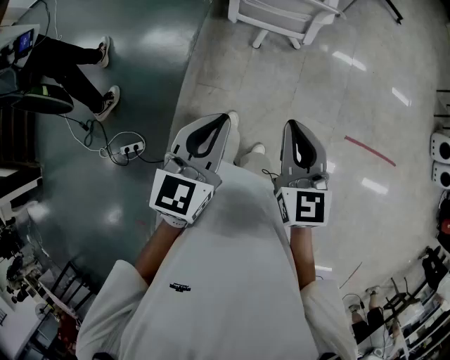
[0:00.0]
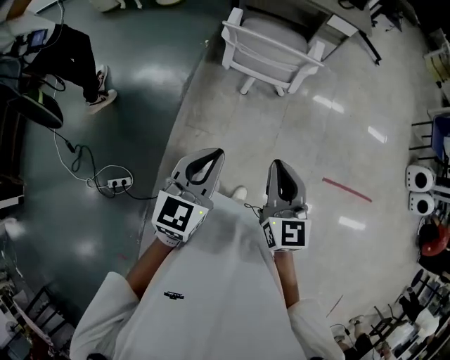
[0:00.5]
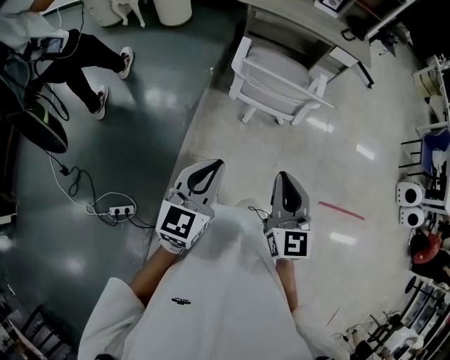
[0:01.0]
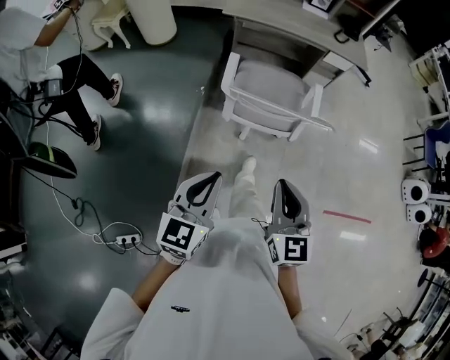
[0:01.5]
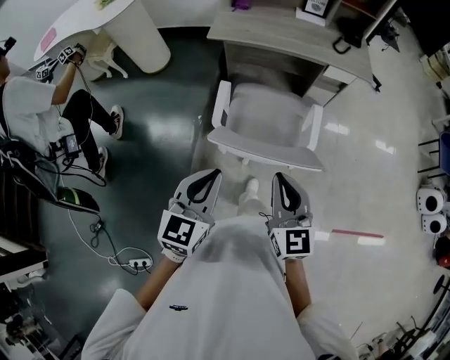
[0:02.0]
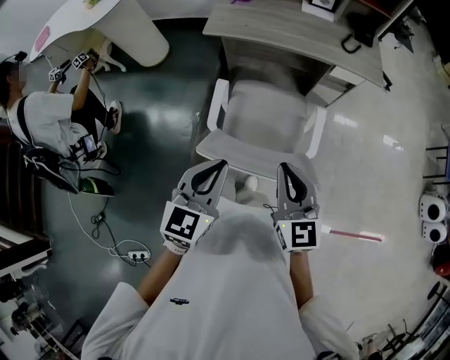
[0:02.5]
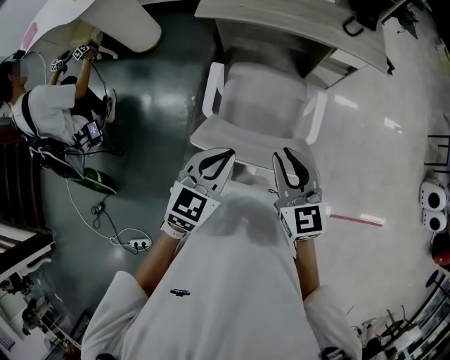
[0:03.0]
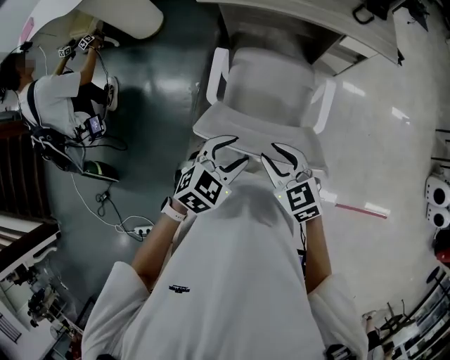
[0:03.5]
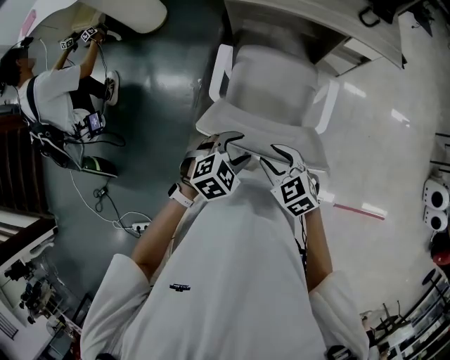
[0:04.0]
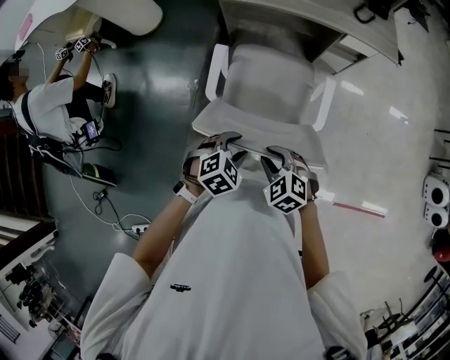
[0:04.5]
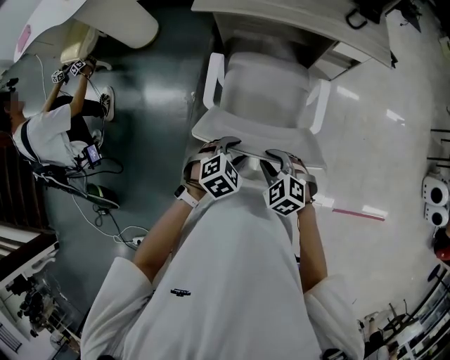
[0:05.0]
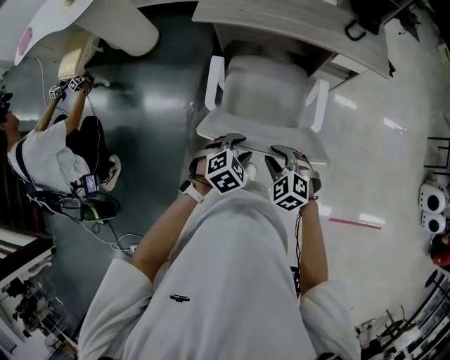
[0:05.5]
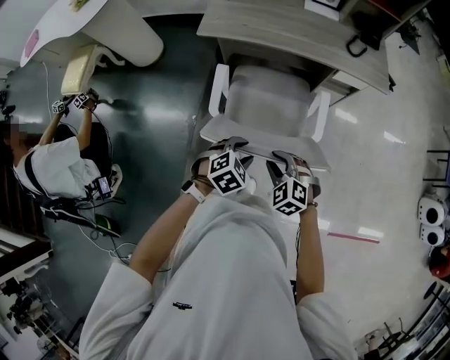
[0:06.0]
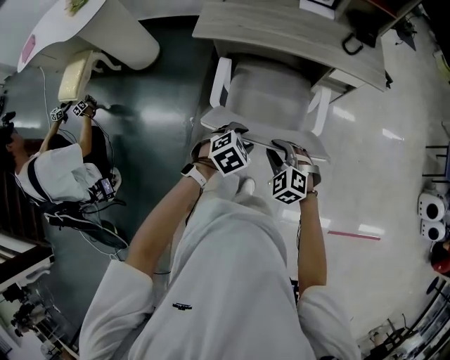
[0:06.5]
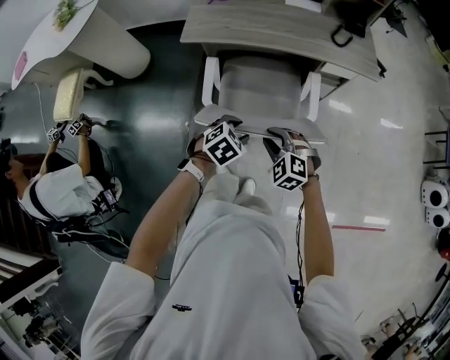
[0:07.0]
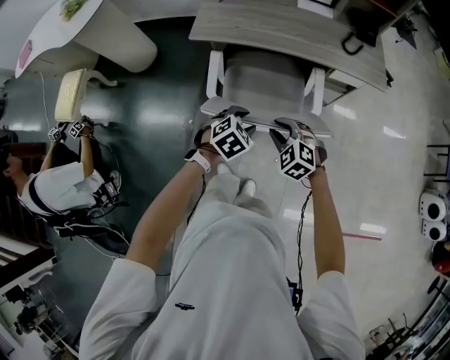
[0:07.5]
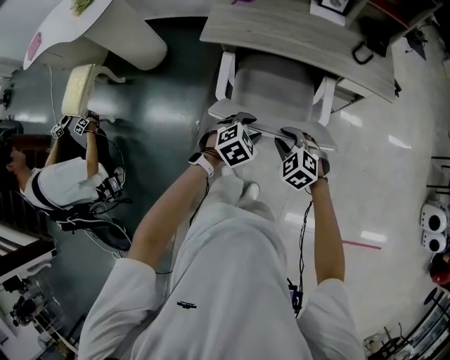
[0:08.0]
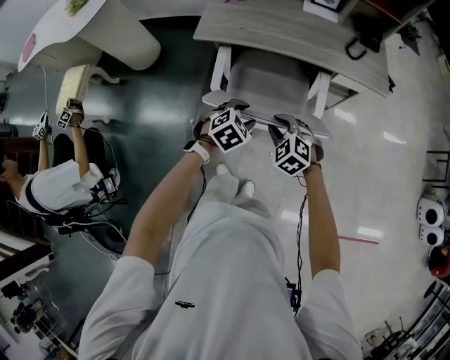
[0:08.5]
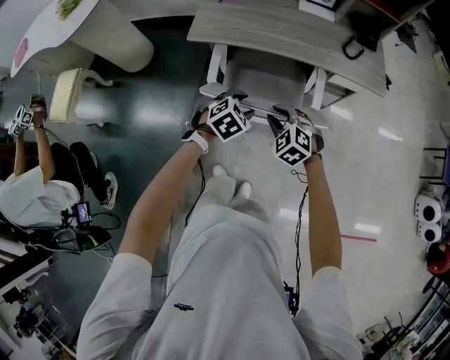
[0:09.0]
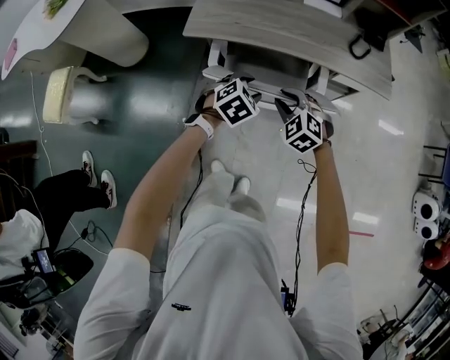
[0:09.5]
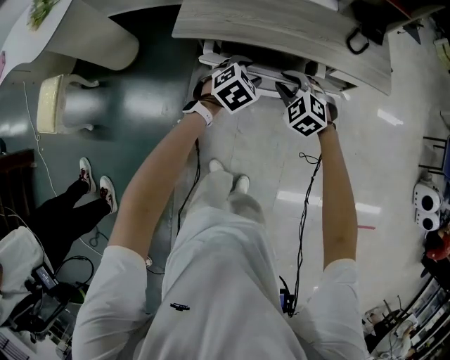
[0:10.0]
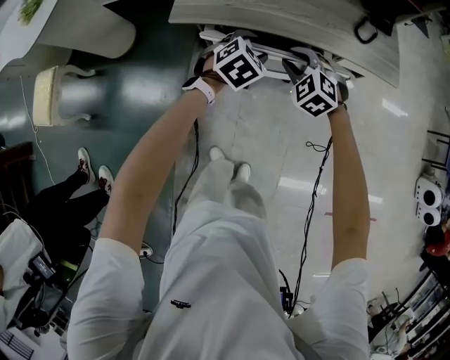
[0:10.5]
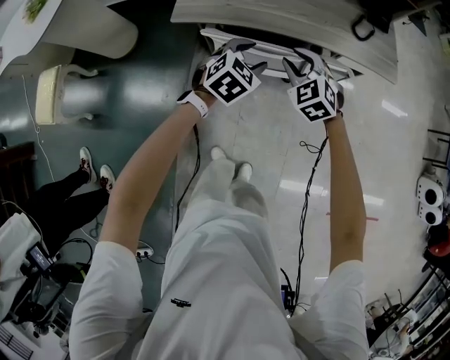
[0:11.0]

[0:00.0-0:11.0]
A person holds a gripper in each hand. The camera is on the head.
0:00.0 to 0:02.0: Both grippers move forward, approximately 40 cm.
0:02.0 to 0:03.5: The right gripper is displaced downward and forward by about 15 cm, turns by roughly 40 degrees, and opens its fingers. Meanwhile the left gripper is displaced downward, forward and to the right by approximately 20 cm, changes its angle by about 40 degrees, and opens its fingers.
0:03.5 to 0:05.5: The grippers both shift downward and forward by roughly 10 cm. The right gripper rotates about 30 degrees.
0:05.5 to 0:07.5: Both grippers move forward, some 15 cm.
0:07.5 to 0:09.0: The two grippers go approximately 5 cm forward.
0:09.0 to 0:11.0: The grippers both shift forward by approximately 15 cm.

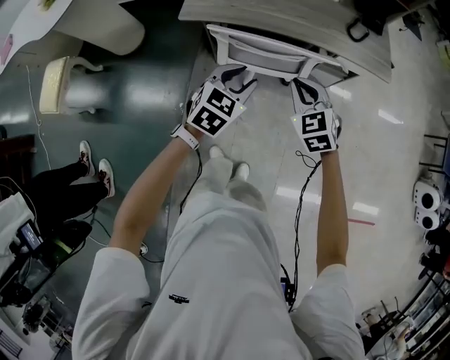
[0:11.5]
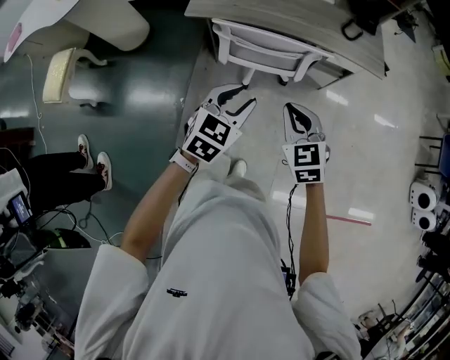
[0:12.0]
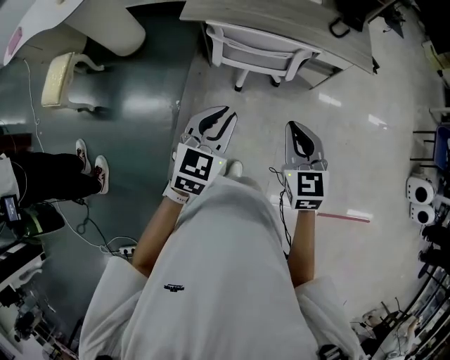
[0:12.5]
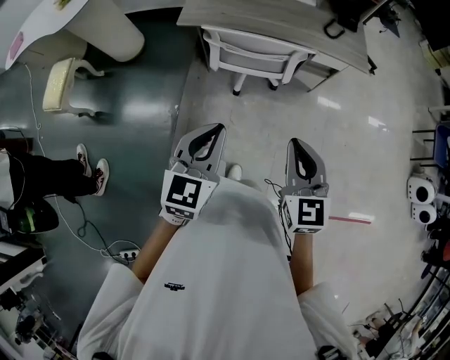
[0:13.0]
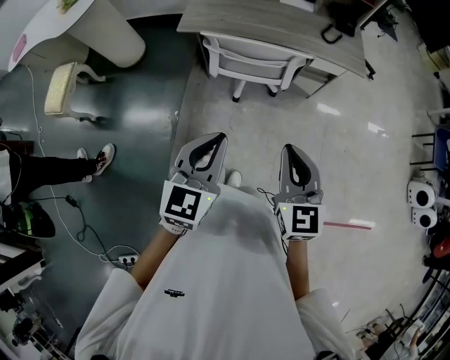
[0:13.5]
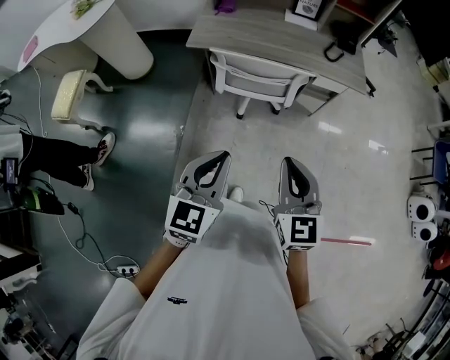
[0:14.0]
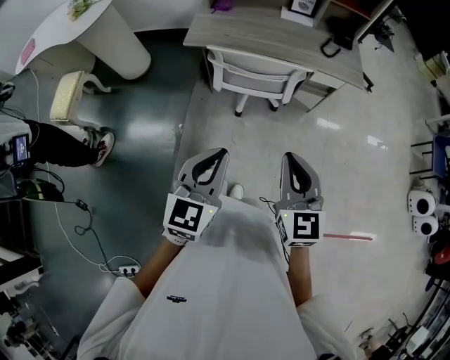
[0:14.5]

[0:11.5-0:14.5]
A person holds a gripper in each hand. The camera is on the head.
0:11.5 to 0:13.0: The two grippers go about 30 cm backward and upward. The left gripper changes its angle by some 20 degrees, and closes up. The right gripper turns by about 30 degrees.
0:13.0 to 0:14.5: The grippers stay close to where they were, moving slightly.

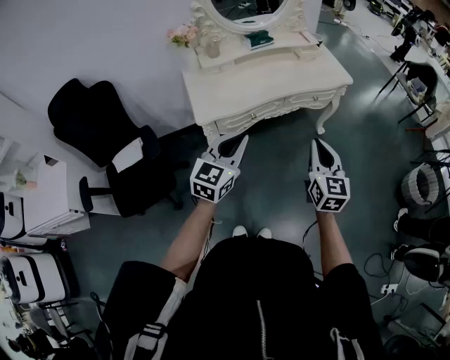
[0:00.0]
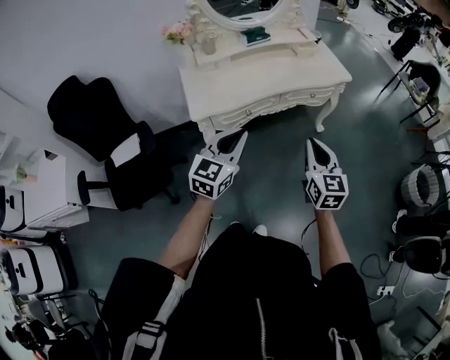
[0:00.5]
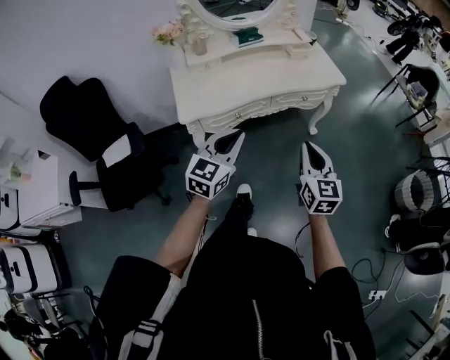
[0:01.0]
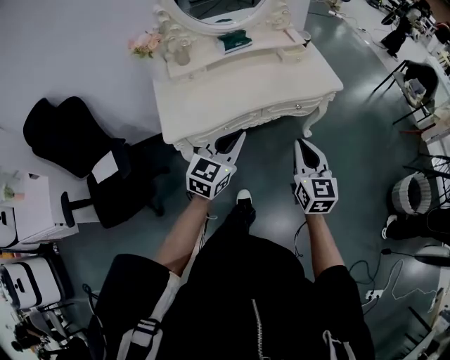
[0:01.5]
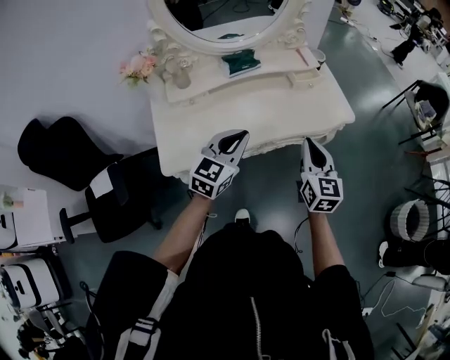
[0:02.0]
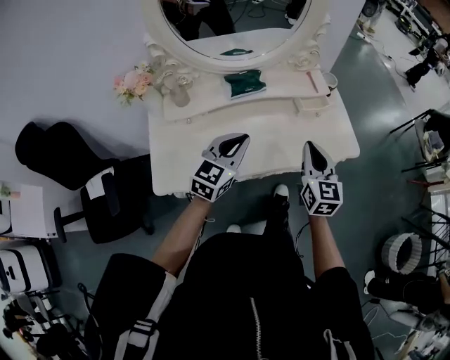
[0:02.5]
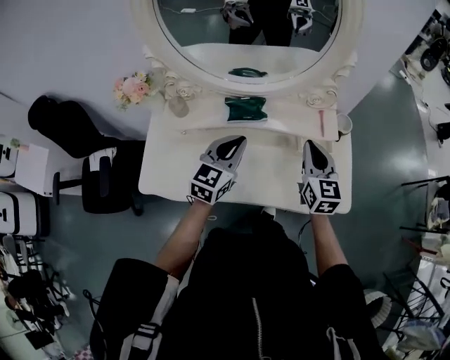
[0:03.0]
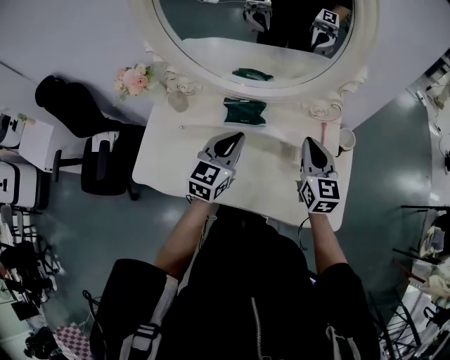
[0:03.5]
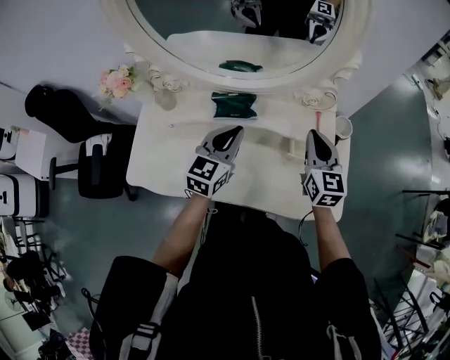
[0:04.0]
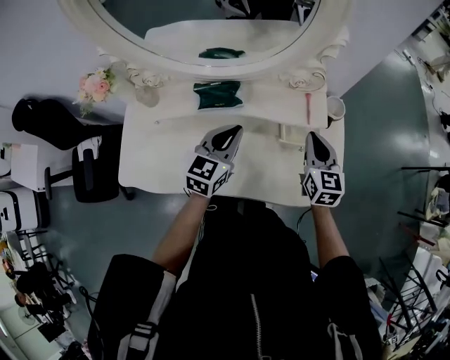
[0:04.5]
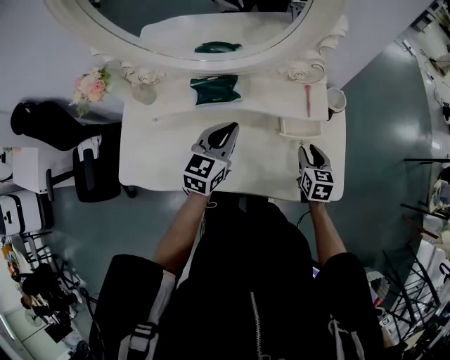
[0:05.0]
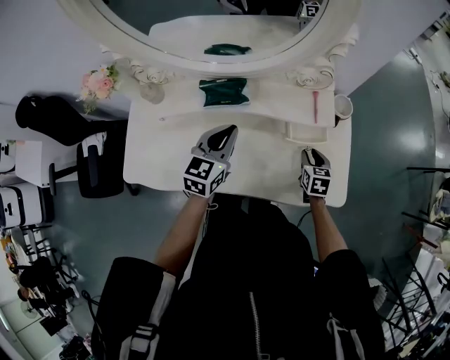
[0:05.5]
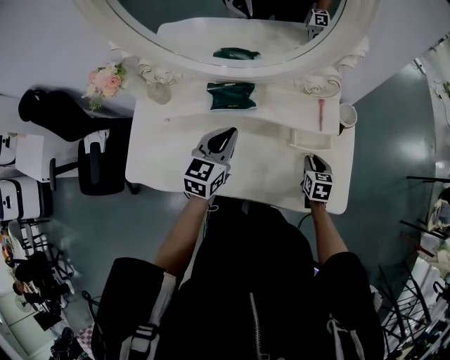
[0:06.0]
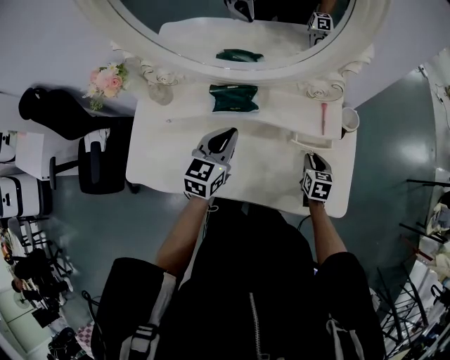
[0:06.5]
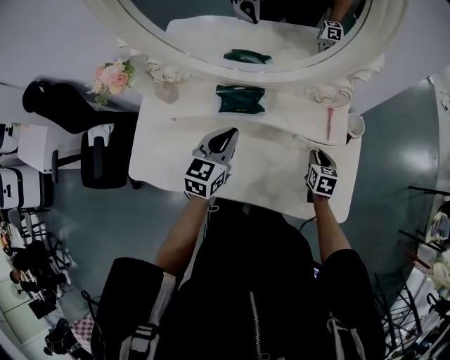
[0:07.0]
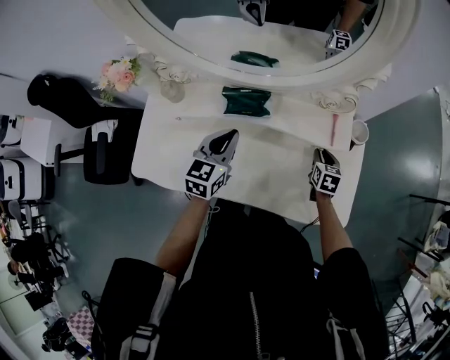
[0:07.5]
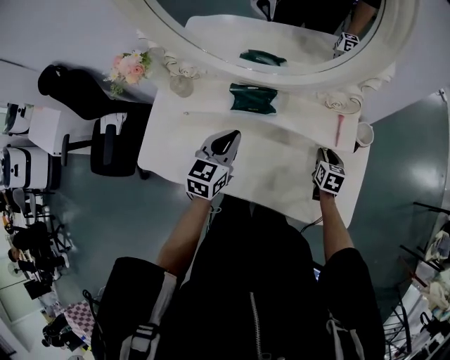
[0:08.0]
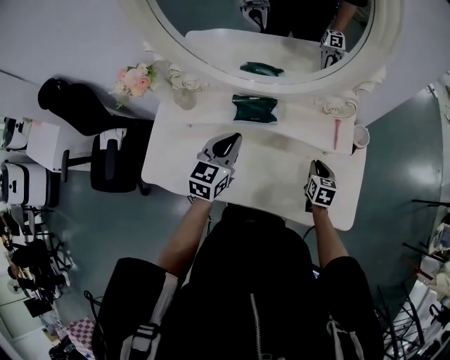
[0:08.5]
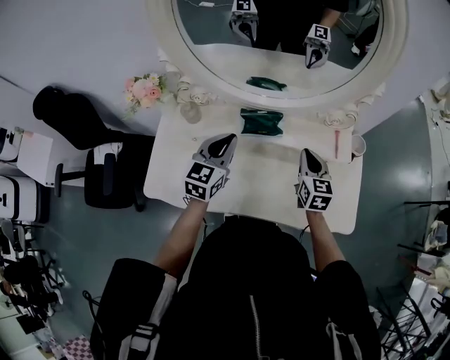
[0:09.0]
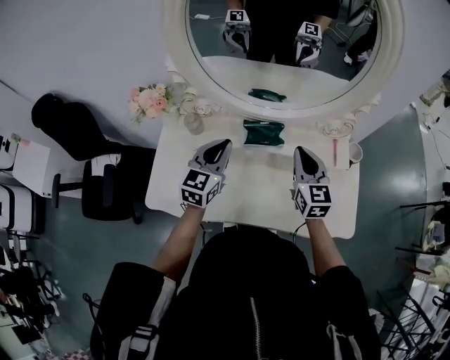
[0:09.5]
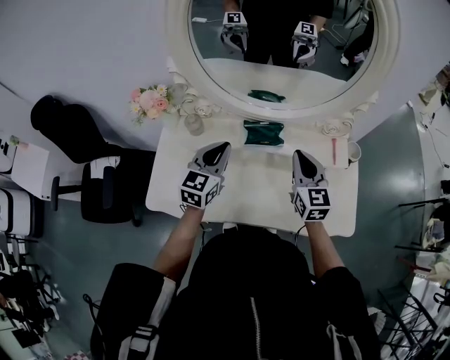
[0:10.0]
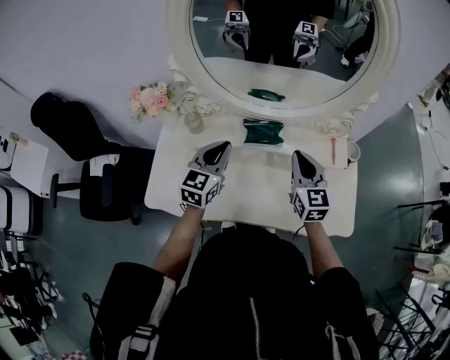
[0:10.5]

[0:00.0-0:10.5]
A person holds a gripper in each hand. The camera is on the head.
0:00.0 to 0:02.0: The two grippers go approximately 35 cm forward.
0:02.0 to 0:04.0: The right gripper moves roughly 40 cm, and changes its angle by roughly 30 degrees. The left gripper ends up roughly 30 cm from where it was, and changes its angle by about 30 degrees.
0:04.0 to 0:06.5: The right gripper moves downward, approximately 25 cm, points its fingers roughly 30 degrees further downward, and opens up, while the left gripper heads downward, covering roughly 5 cm.
0:06.5 to 0:08.5: The left gripper ends up some 5 cm from where it was.
0:08.5 to 0:10.5: The left gripper goes about 10 cm to the left, while the right gripper goes roughly 30 cm upward and to the left, and turns by approximately 30 degrees.

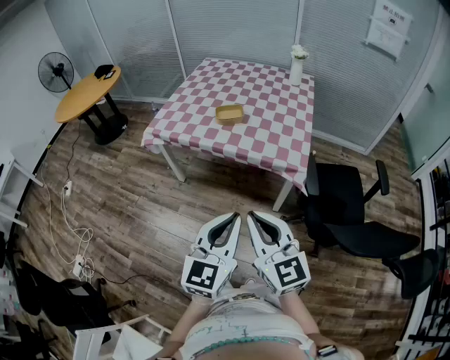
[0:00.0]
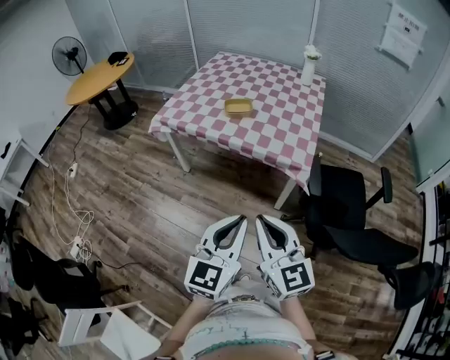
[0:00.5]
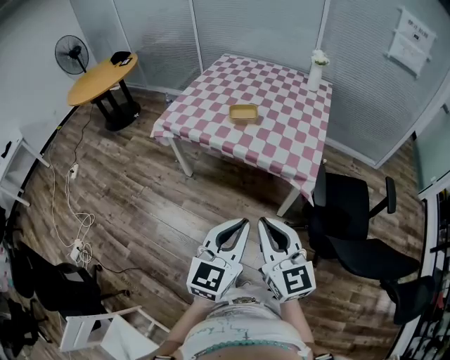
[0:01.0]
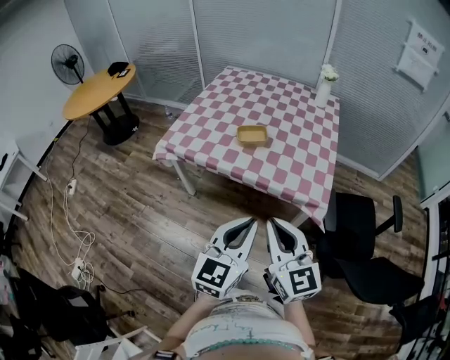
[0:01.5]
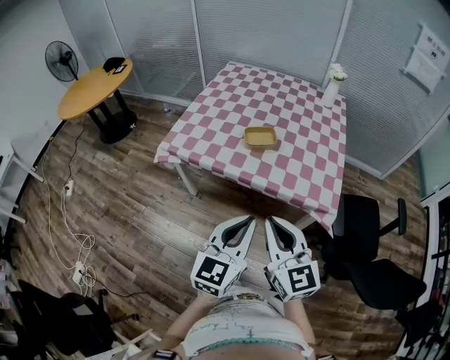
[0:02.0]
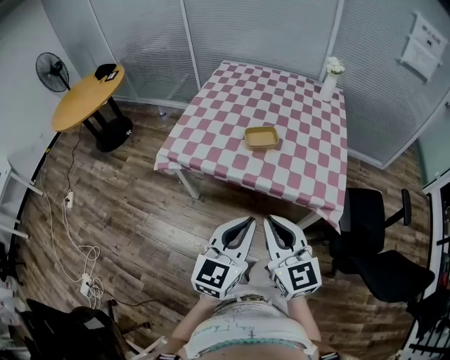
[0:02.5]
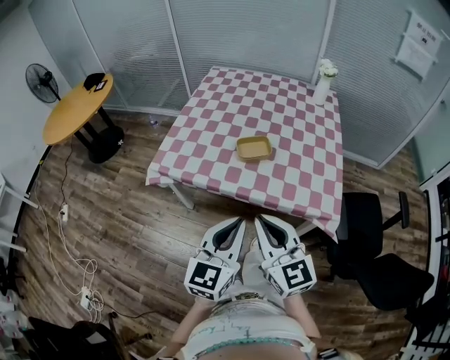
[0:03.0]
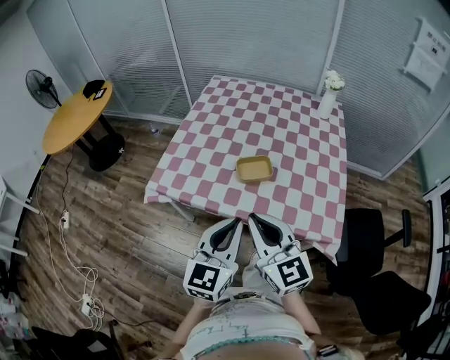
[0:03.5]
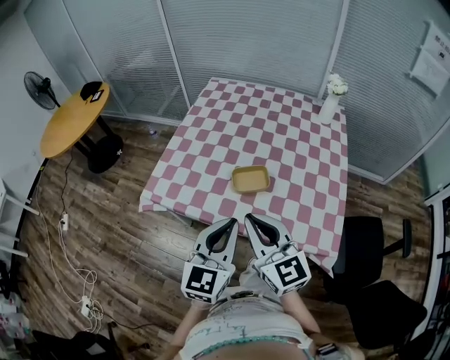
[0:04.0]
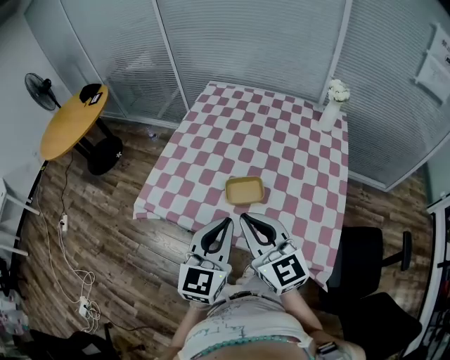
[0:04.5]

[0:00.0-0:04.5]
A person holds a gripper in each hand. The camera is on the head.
0:00.0 to 0:02.0: Both grippers travel together forward and to the left, approximately 20 cm.
0:02.0 to 0:04.5: The grippers both shift forward by about 30 cm.
